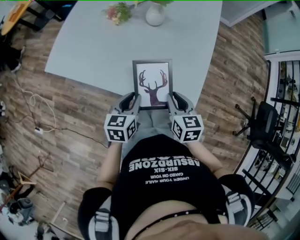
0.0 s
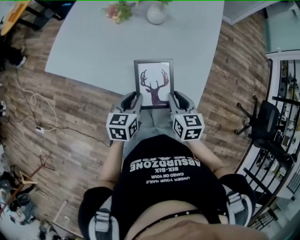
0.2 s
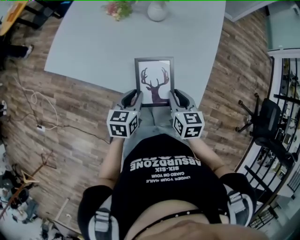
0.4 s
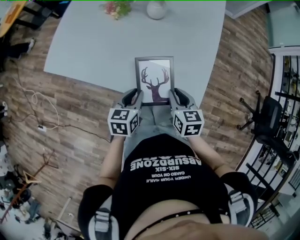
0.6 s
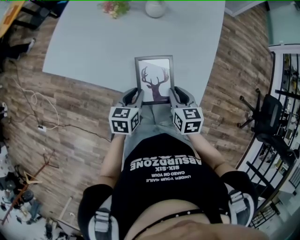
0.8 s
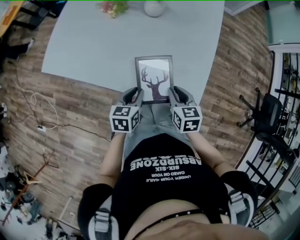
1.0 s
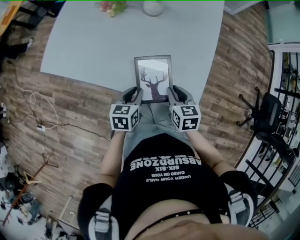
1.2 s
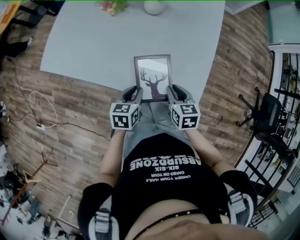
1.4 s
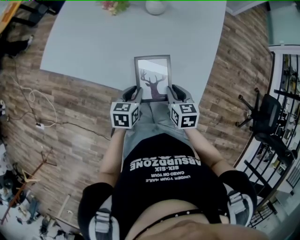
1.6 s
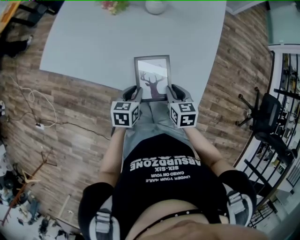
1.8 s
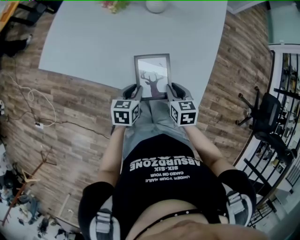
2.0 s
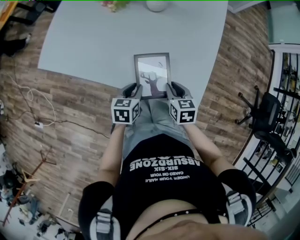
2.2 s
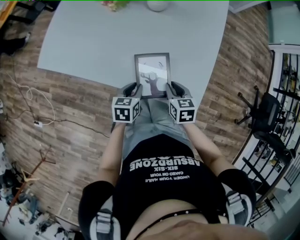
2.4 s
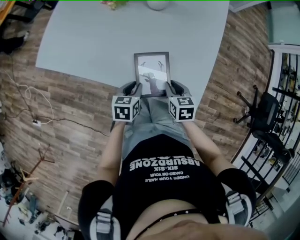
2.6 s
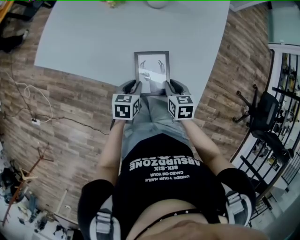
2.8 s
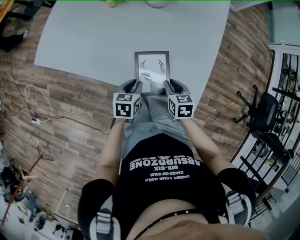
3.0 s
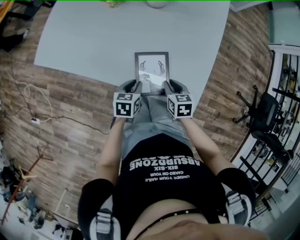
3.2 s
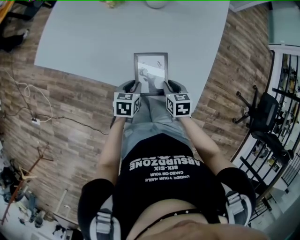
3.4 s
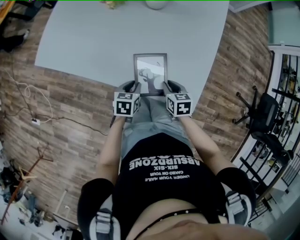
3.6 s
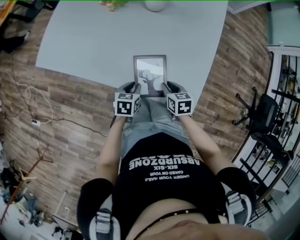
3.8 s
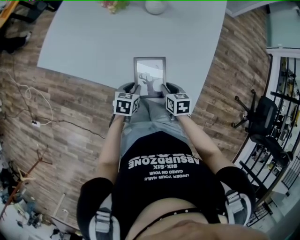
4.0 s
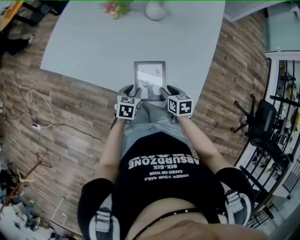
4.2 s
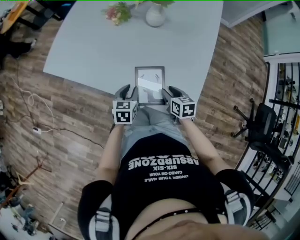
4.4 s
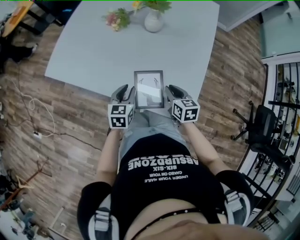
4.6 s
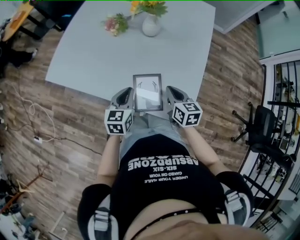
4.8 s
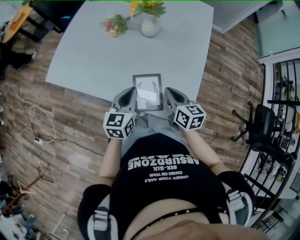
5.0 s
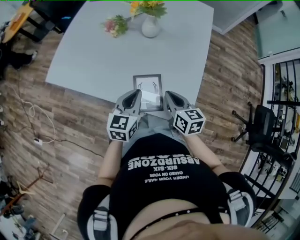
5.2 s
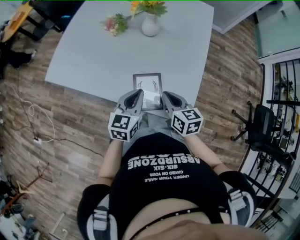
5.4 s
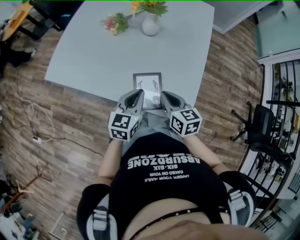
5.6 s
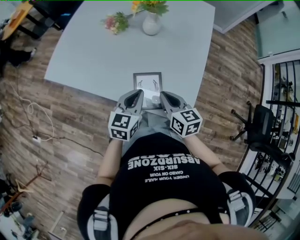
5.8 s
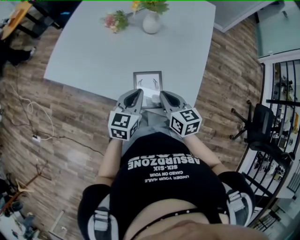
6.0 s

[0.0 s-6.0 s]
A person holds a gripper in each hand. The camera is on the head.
0.0 to 1.6 s: Both grippers move downward, some 10 cm.
1.6 to 3.0 s: The left gripper moves roughly 5 cm. Meanwhile the right gripper is displaced downward by some 5 cm.
3.0 to 4.4 s: The right gripper opens up.
4.4 to 6.0 s: The two grippers go some 15 cm upward. The right gripper closes. The left gripper rotates some 20 degrees, and closes.

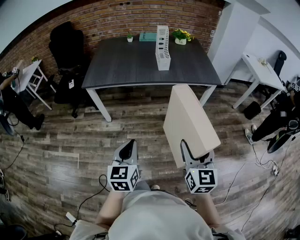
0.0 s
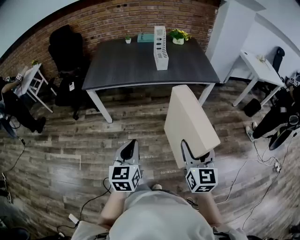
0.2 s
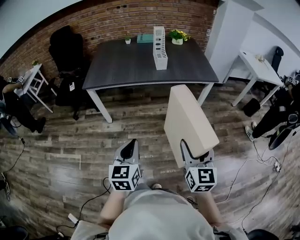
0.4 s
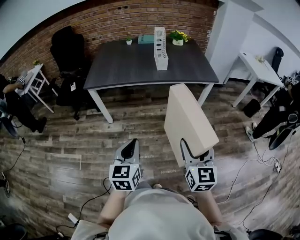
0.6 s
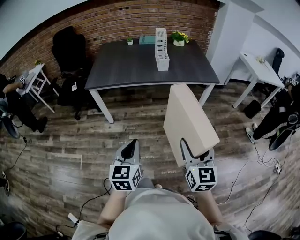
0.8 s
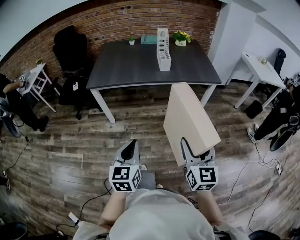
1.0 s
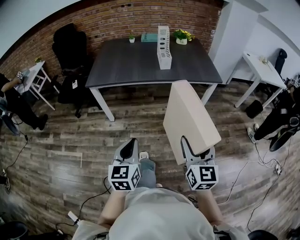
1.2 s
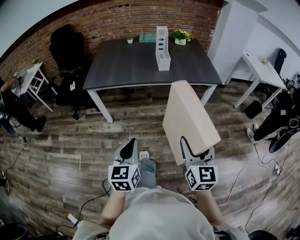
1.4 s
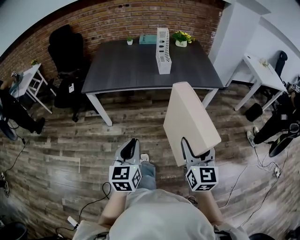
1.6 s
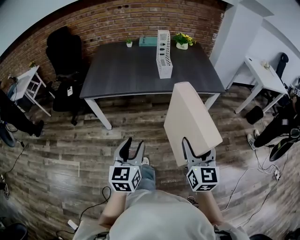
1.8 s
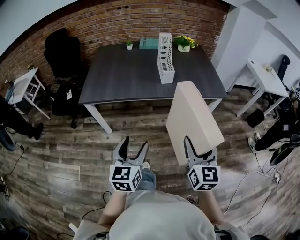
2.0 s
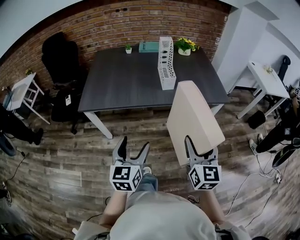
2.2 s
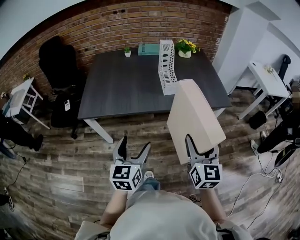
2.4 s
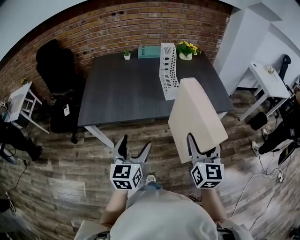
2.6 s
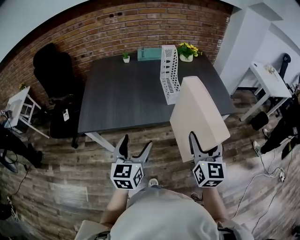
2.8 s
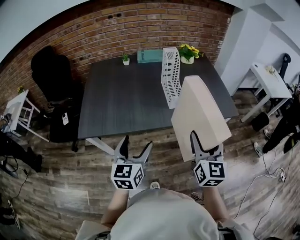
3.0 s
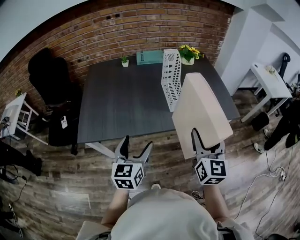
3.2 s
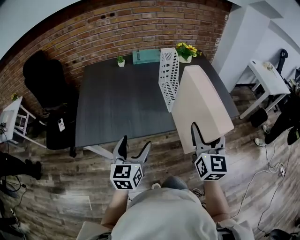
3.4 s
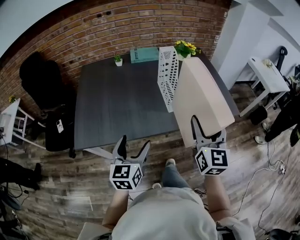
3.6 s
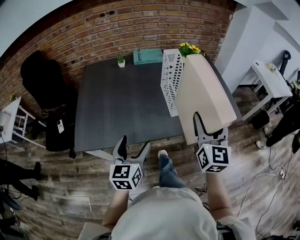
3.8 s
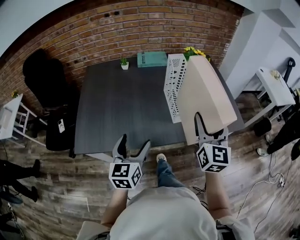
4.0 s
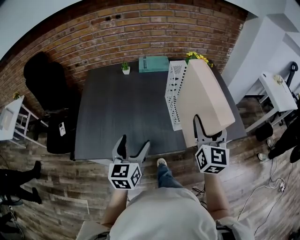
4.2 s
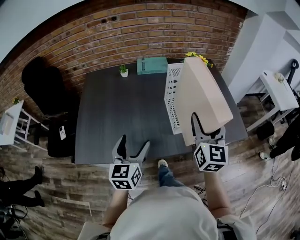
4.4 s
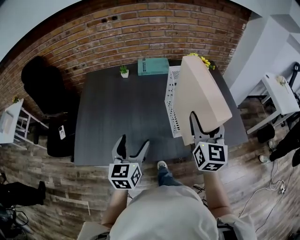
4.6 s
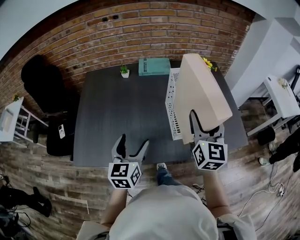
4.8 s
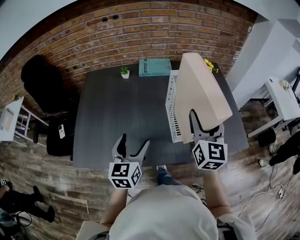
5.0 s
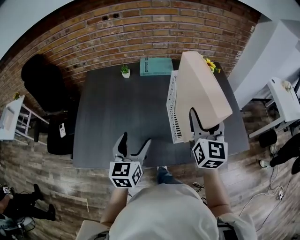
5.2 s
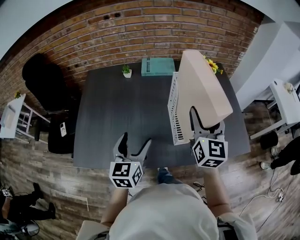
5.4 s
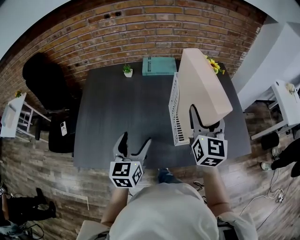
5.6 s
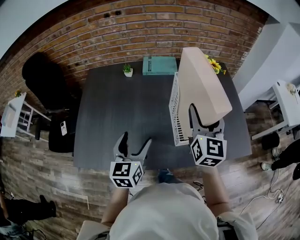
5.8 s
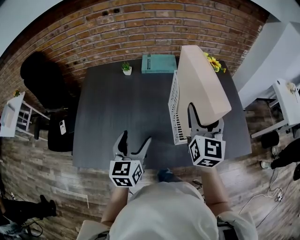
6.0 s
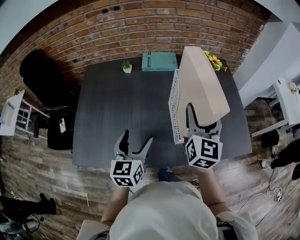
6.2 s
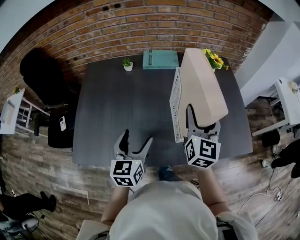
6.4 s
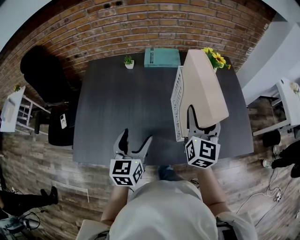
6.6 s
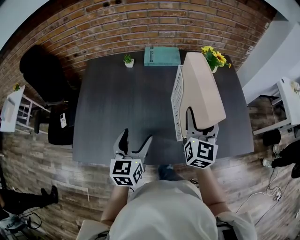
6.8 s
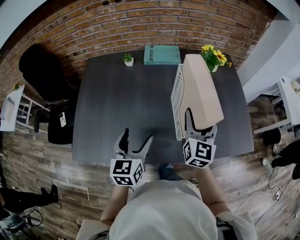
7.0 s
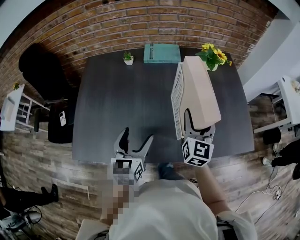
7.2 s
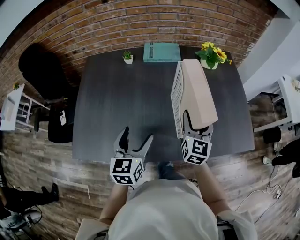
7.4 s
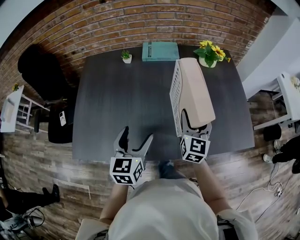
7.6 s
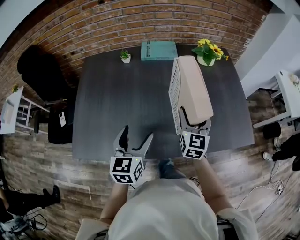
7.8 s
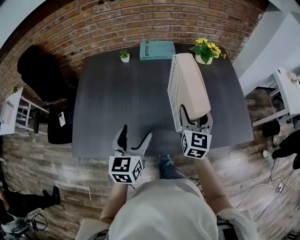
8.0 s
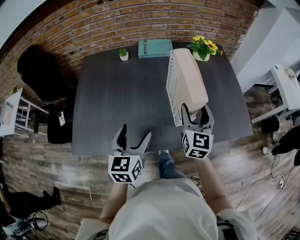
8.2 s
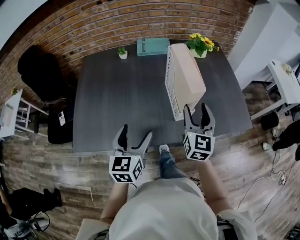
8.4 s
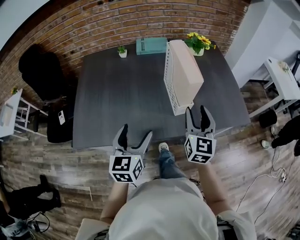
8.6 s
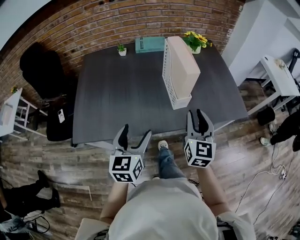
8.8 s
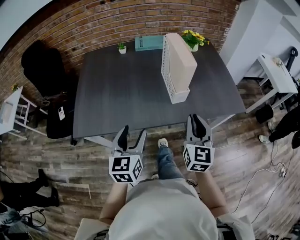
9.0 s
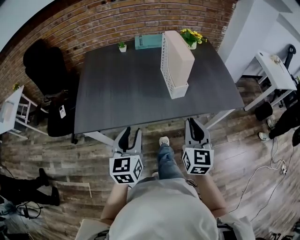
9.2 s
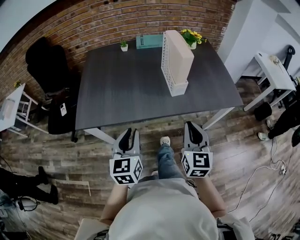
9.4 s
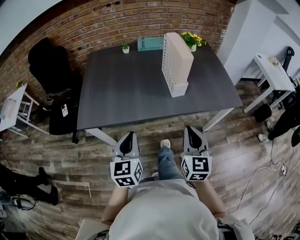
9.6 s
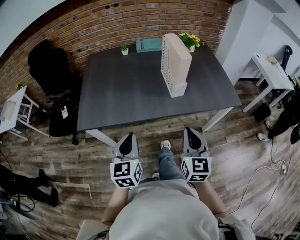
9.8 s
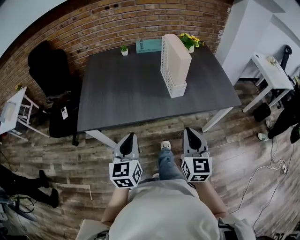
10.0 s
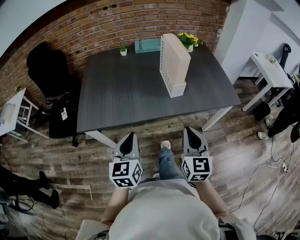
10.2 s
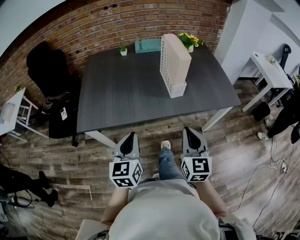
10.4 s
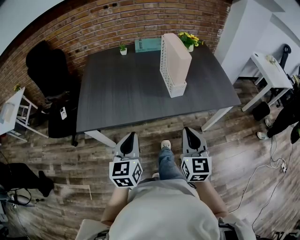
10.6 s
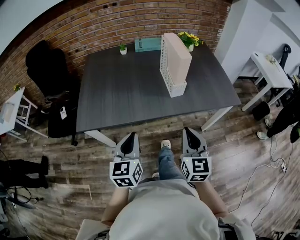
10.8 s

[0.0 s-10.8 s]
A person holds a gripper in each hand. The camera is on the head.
0.0 to 1.6 s: The grippers move only a little.
1.6 to 3.0 s: The grippers both shift forward by some 30 cm. The left gripper opens.
3.0 to 4.6 s: The grippers both shift forward by approximately 25 cm.
4.6 to 6.2 s: The two grippers go some 10 cm forward.
6.2 to 7.8 s: The right gripper goes some 10 cm downward.
7.8 to 9.2 s: The two grippers go approximately 25 cm backward. The right gripper closes up; the left gripper closes its fingers.
9.2 to 10.8 s: The left gripper closes. Meanwhile the right gripper travels backward by about 5 cm.

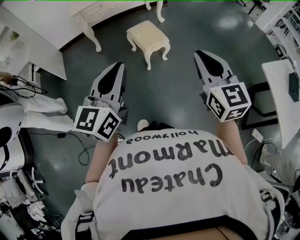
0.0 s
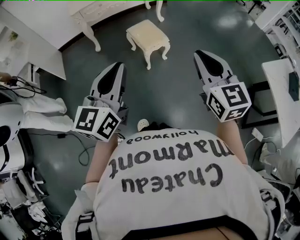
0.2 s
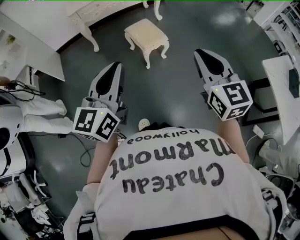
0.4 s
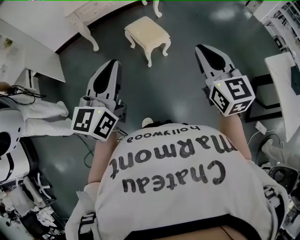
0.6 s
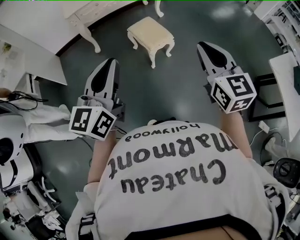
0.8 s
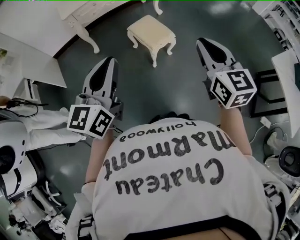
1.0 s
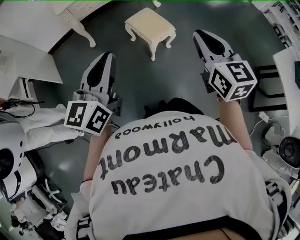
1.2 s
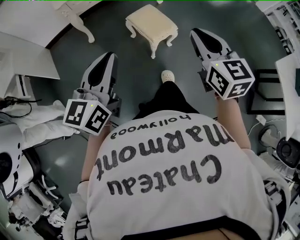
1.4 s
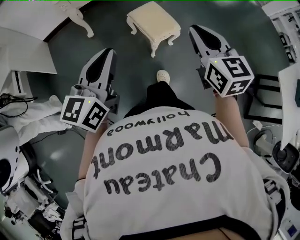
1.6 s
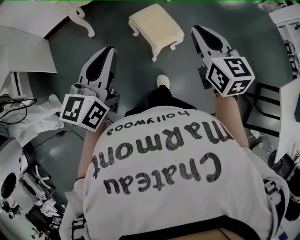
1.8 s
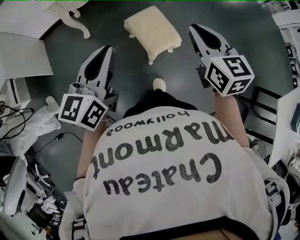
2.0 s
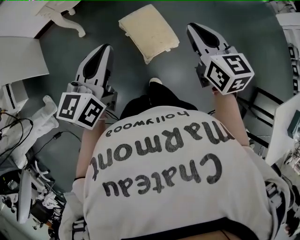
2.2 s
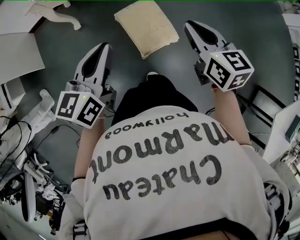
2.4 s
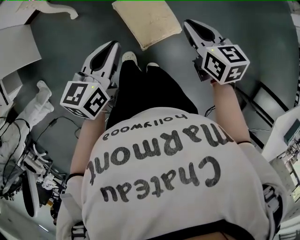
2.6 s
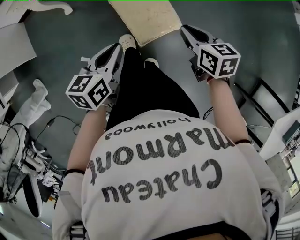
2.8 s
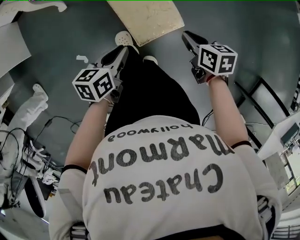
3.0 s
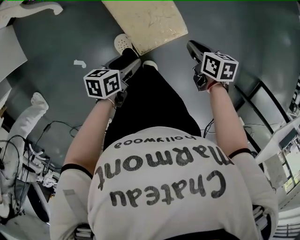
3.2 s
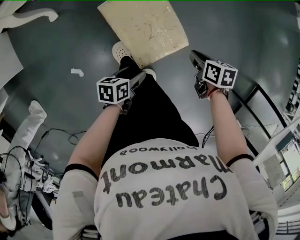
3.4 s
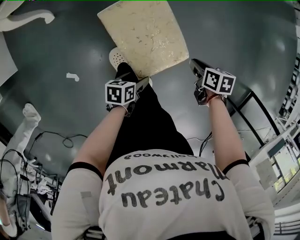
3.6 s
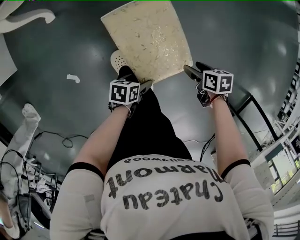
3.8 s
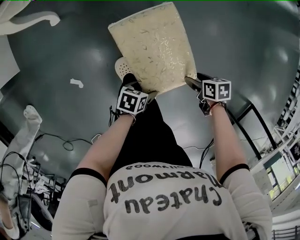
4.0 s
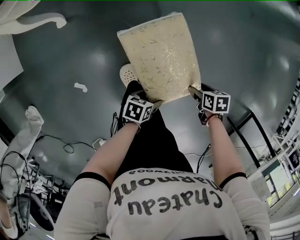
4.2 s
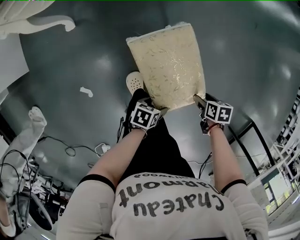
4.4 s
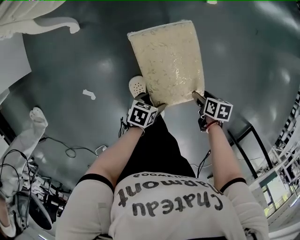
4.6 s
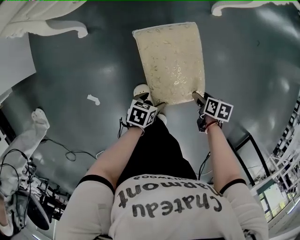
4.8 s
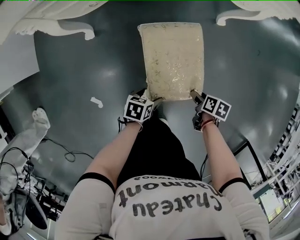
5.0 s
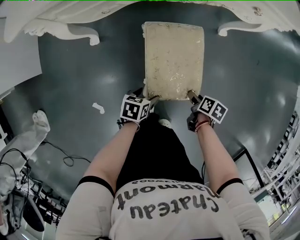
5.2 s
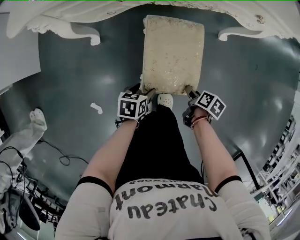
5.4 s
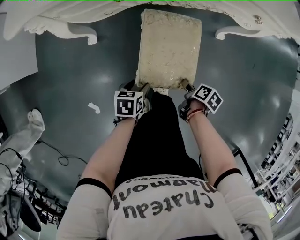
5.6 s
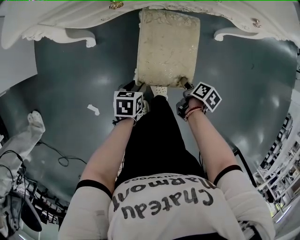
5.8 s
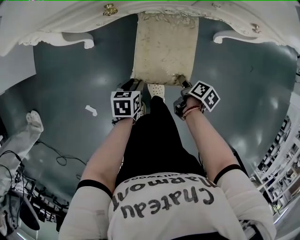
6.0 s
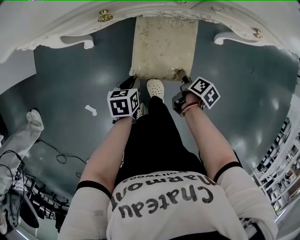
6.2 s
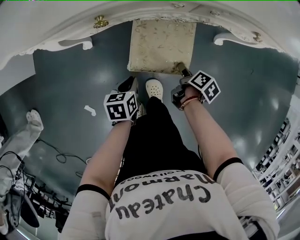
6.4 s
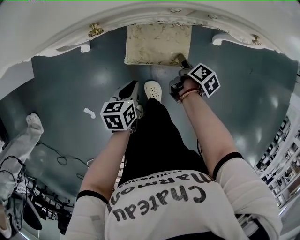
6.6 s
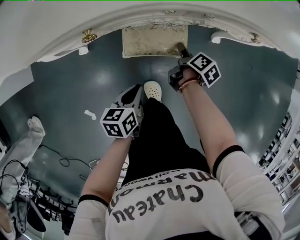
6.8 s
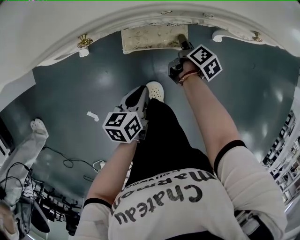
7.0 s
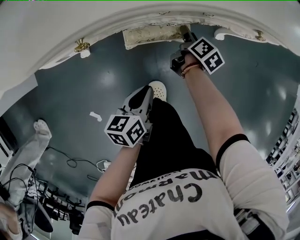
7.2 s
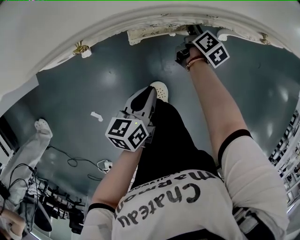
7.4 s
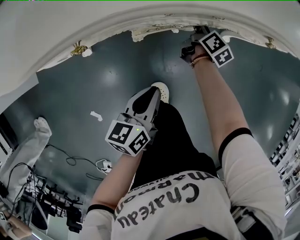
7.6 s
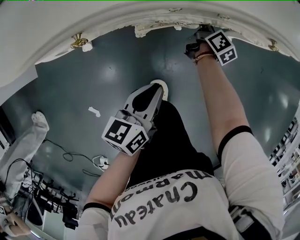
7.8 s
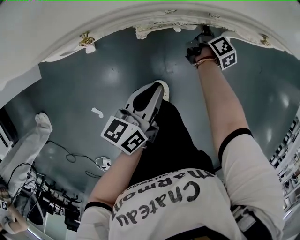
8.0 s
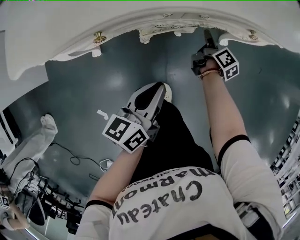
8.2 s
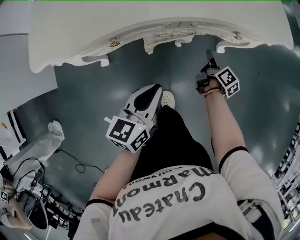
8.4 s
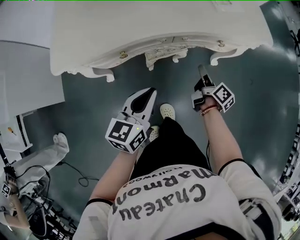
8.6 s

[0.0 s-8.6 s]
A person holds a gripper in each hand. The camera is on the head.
0.0 to 1.4 s: Both grippers travel together forward and to the left, some 20 cm.
1.4 to 2.8 s: Both grippers move forward and downward, approximately 50 cm. The left gripper angles its fingers downward, by approximately 30 degrees. The right gripper rotates some 40 degrees.
2.8 to 4.4 s: The two grippers go roughly 30 cm downward. The left gripper swivels some 40 degrees, and opens its fingers, while the right gripper tips its fingers downward by roughly 30 degrees, and opens.
4.4 to 5.8 s: The left gripper shifts by about 35 cm, turns by about 30 degrees, and closes; the right gripper moves roughly 35 cm, and swivels roughly 30 degrees.
5.8 to 7.2 s: The left gripper goes roughly 15 cm forward and upward, turns by roughly 30 degrees, and closes; the right gripper is displaced forward by approximately 30 cm, and rotates about 30 degrees.
7.2 to 8.6 s: The right gripper is displaced upward and backward by approximately 20 cm, and turns by some 20 degrees; the left gripper travels upward by approximately 25 cm, and changes its angle by about 30 degrees.
